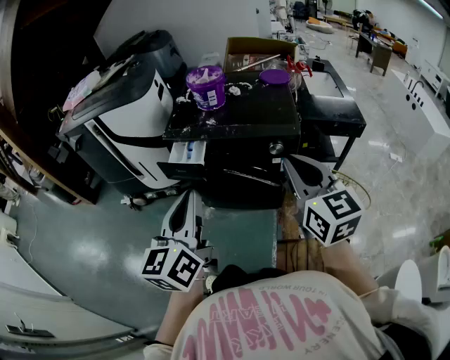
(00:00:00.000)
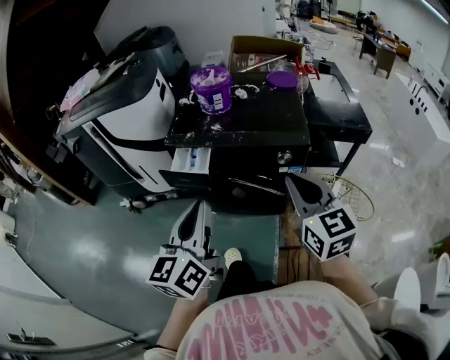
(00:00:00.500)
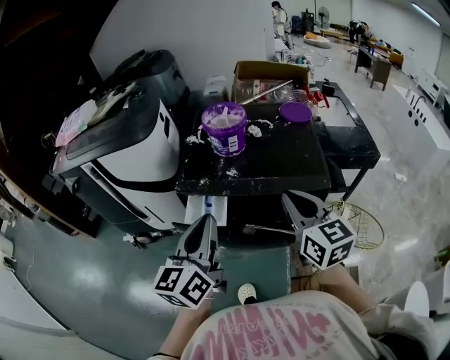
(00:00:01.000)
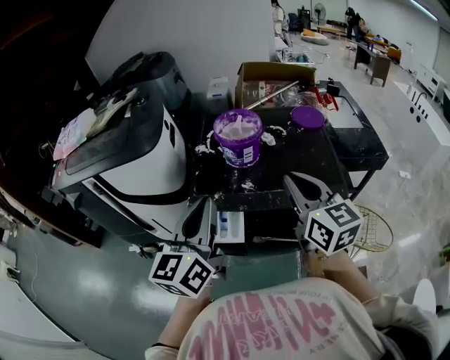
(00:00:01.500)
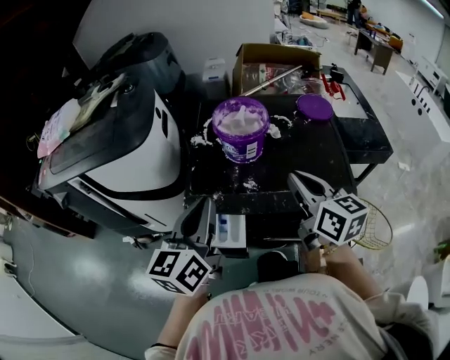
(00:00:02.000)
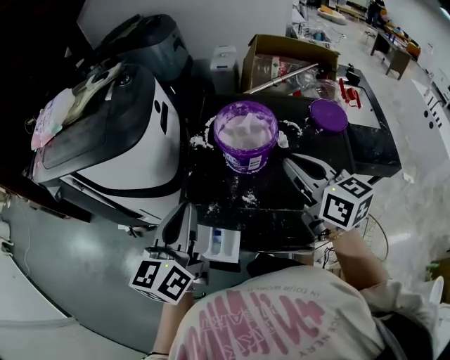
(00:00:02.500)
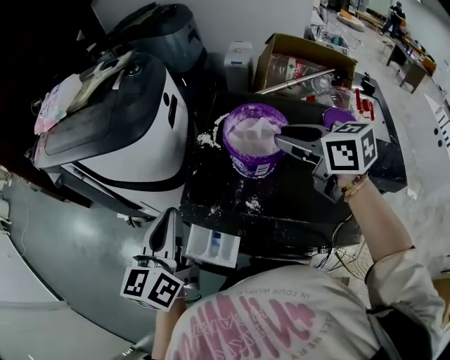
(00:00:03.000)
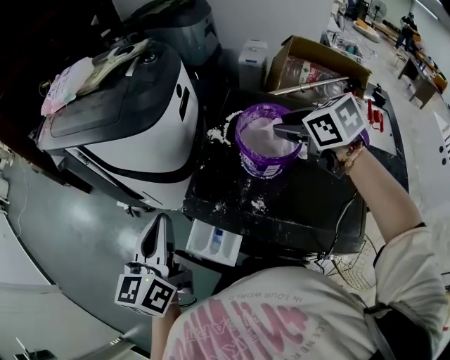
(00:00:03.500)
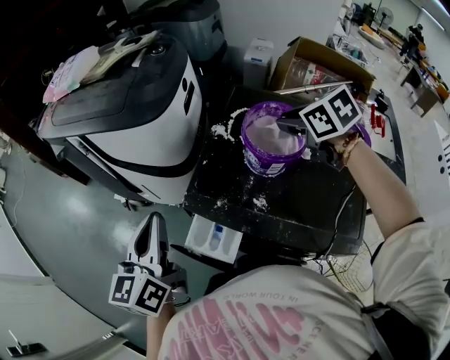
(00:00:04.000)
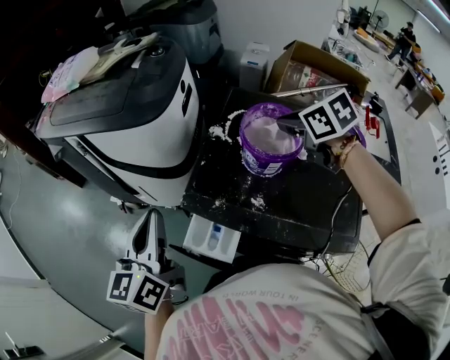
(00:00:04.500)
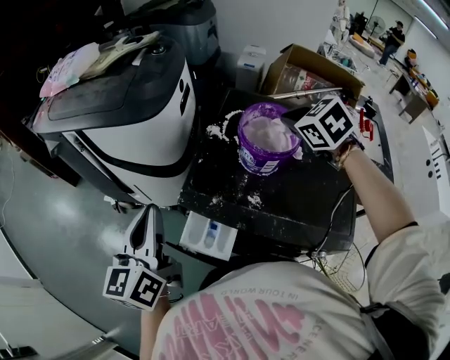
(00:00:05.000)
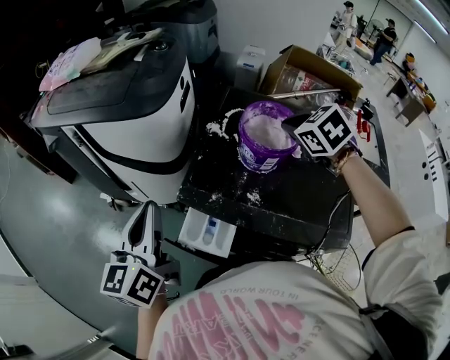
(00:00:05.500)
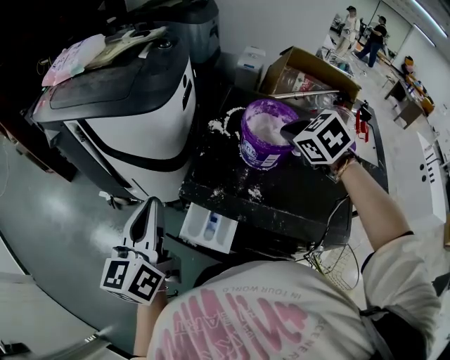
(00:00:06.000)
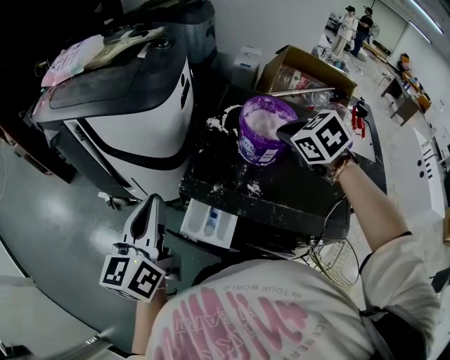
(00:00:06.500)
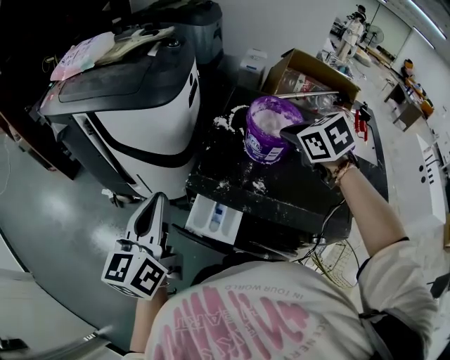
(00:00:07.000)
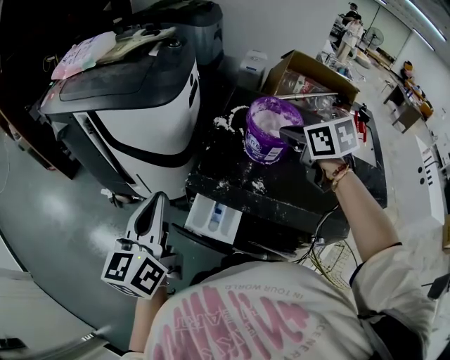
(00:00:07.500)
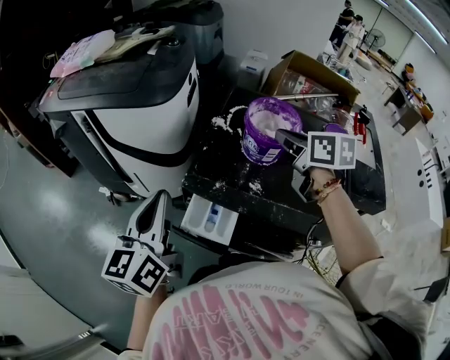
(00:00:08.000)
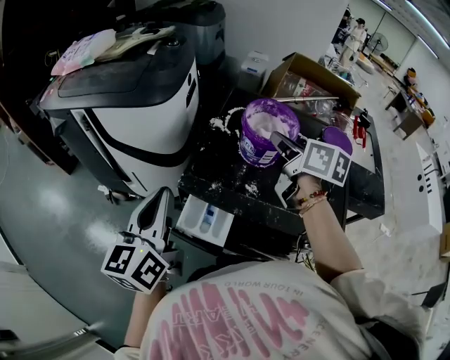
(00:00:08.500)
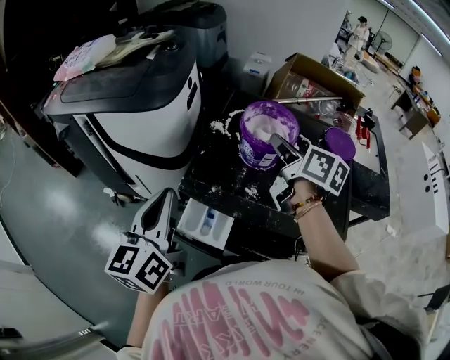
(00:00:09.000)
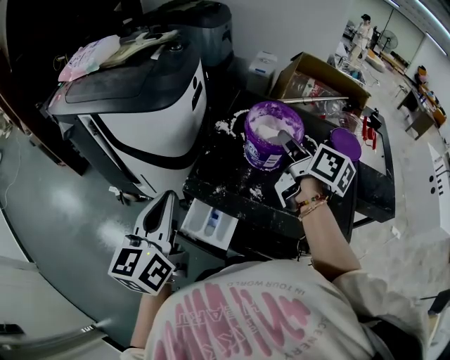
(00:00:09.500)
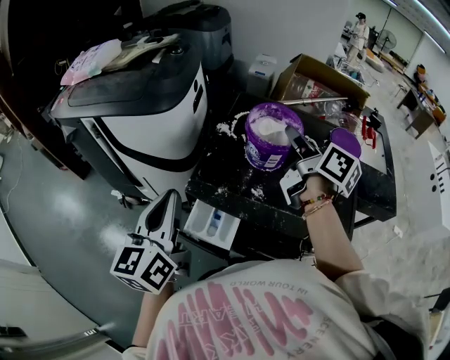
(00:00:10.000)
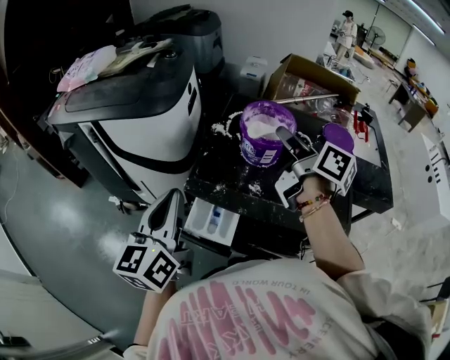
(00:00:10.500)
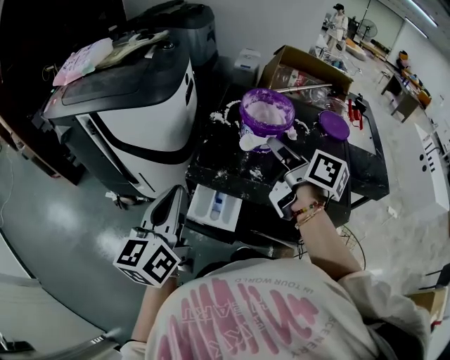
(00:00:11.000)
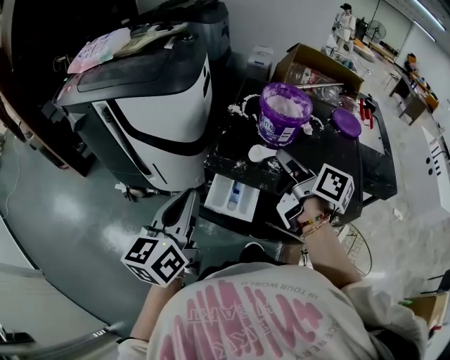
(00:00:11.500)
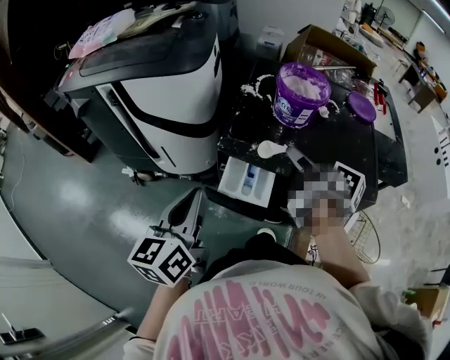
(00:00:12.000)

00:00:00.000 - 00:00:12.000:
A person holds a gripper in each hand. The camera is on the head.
00:00:00.000 - 00:00:02.000: Both grippers travel together forward, approximately 35 cm. The right gripper swivels some 20 degrees.
00:00:02.000 - 00:00:04.000: The left gripper shifts by some 10 cm, and turns by approximately 30 degrees. The right gripper ends up approximately 25 cm from where it was, points its fingers roughly 40 degrees further downward, and opens its fingers.
00:00:04.000 - 00:00:06.000: The right gripper moves backward, some 5 cm, and rotates roughly 20 degrees.
00:00:06.000 - 00:00:08.000: The right gripper rolls clockwise, seen from behind, by about 40 degrees.
00:00:08.000 - 00:00:10.000: The right gripper changes its angle by approximately 40 degrees.
00:00:10.000 - 00:00:12.000: The left gripper travels backward, downward and to the left by about 10 cm. Meanwhile the right gripper goes roughly 20 cm backward, to the left and downward.

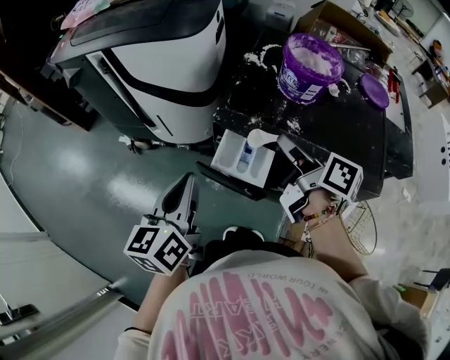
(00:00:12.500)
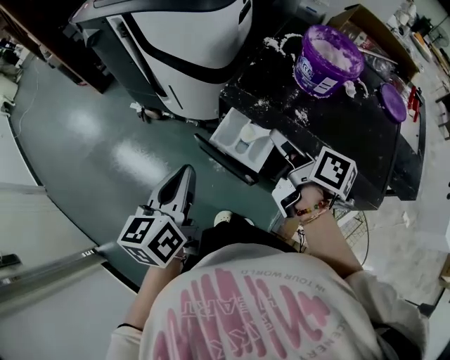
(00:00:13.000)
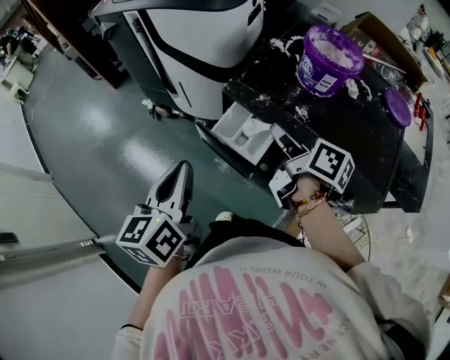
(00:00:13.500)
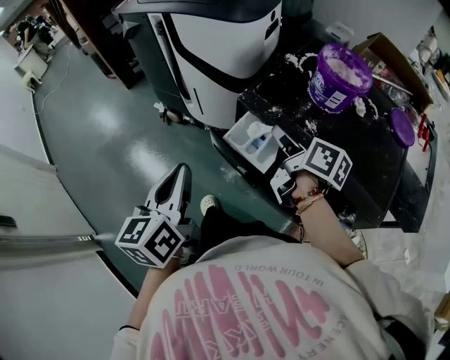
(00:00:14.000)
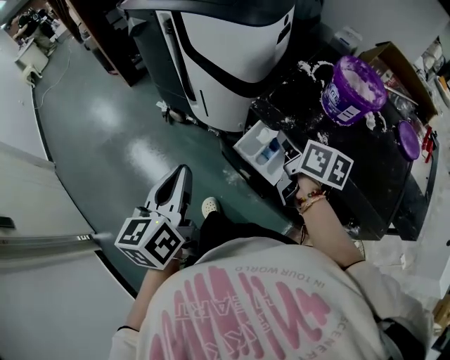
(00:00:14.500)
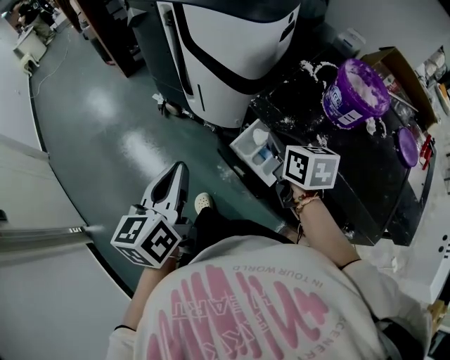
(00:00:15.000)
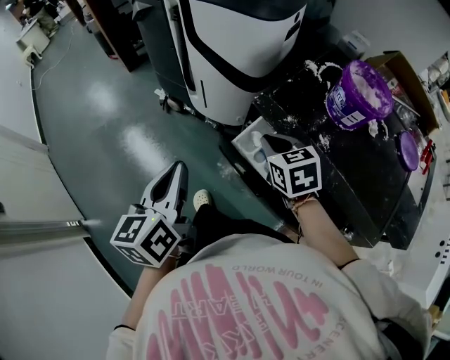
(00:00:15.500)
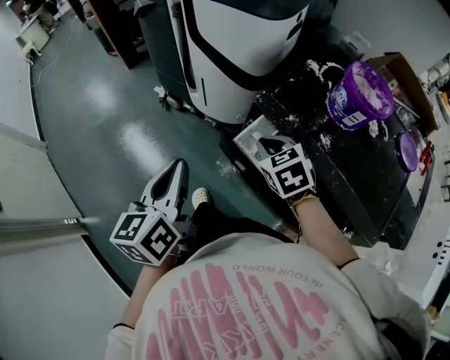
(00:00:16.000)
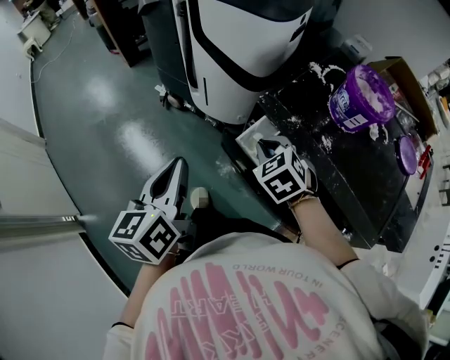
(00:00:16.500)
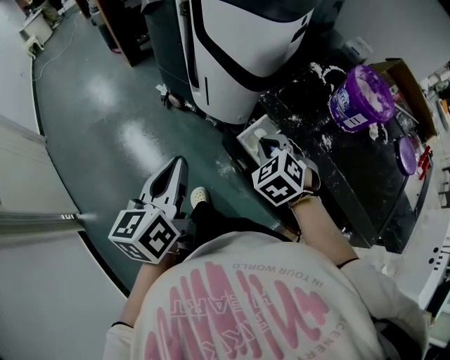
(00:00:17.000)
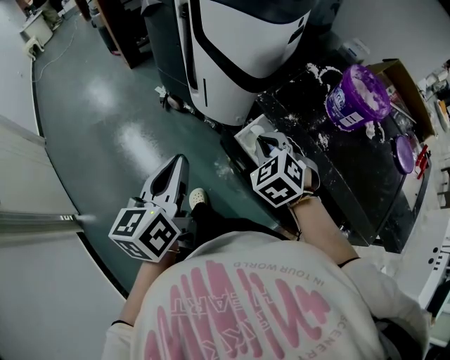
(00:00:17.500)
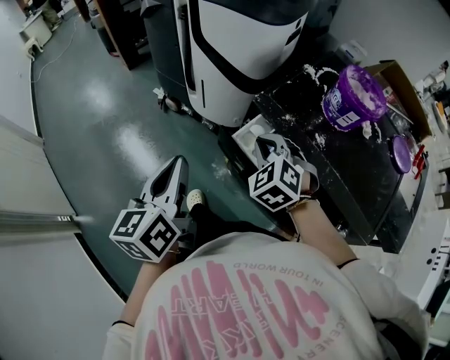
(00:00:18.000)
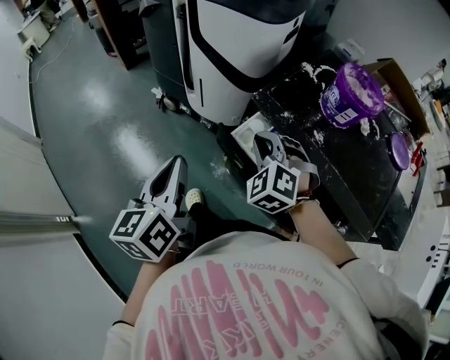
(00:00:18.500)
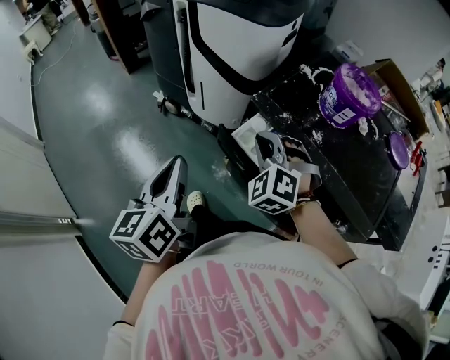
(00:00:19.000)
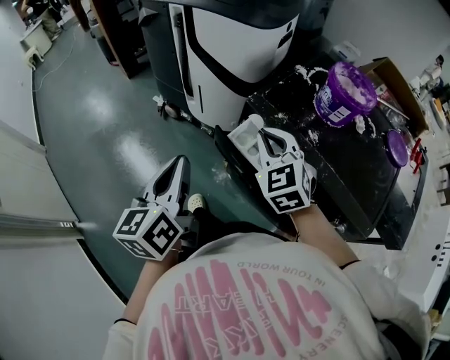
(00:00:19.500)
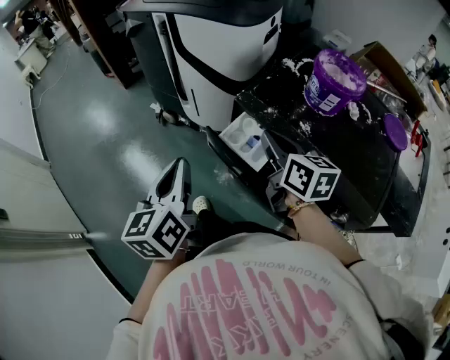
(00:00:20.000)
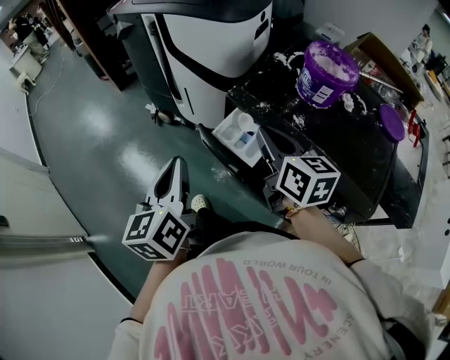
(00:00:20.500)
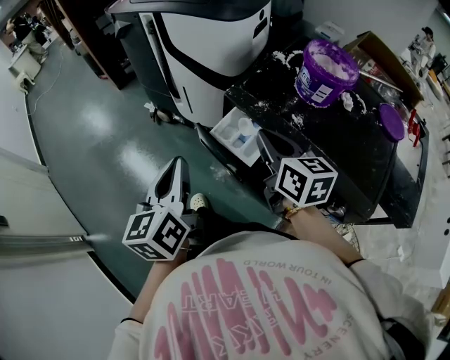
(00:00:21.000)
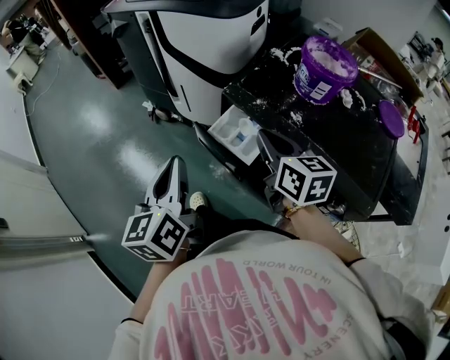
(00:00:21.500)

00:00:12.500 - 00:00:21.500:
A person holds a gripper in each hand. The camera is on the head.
00:00:12.500 - 00:00:14.500: The right gripper is displaced downward and to the left by some 10 cm, and turns by roughly 30 degrees. Meanwhile the left gripper shifts roughly 10 cm backward and to the left, and rotates about 20 degrees.
00:00:14.500 - 00:00:17.000: The right gripper shifts some 10 cm to the left and downward, and rolls counterclockwise, seen from behind, by about 80 degrees.
00:00:17.000 - 00:00:19.500: The right gripper shifts some 10 cm upward, and rotates about 20 degrees.
00:00:19.500 - 00:00:21.500: The right gripper moves to the right, approximately 5 cm, and rotates around the line of its fingers by some 50 degrees, clockwise from behind.

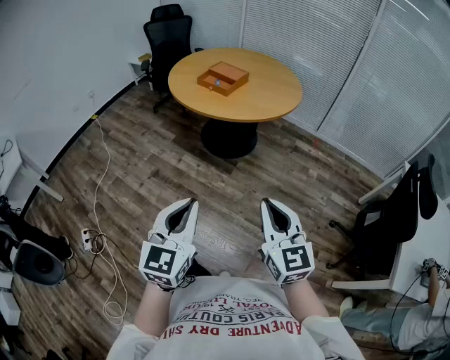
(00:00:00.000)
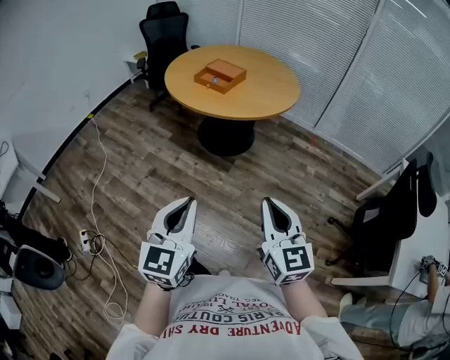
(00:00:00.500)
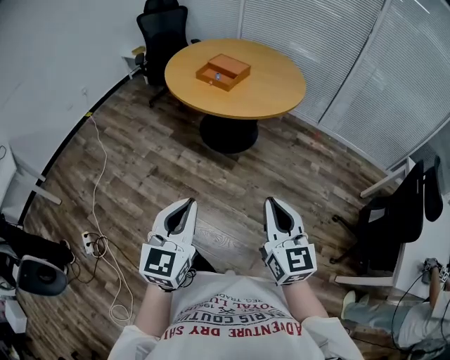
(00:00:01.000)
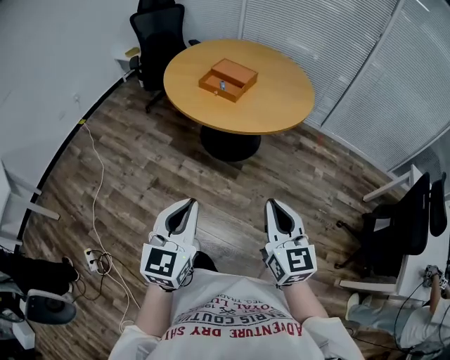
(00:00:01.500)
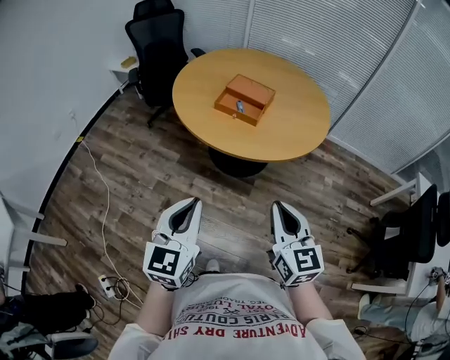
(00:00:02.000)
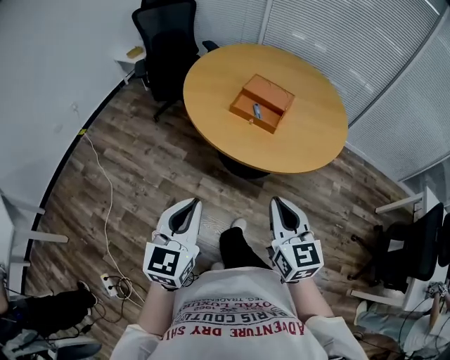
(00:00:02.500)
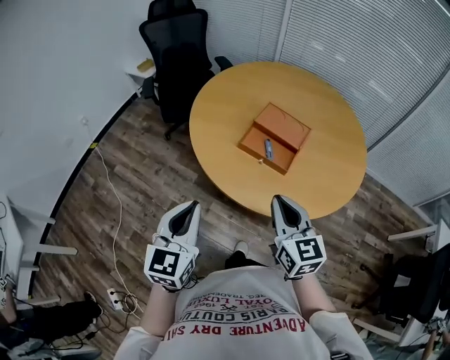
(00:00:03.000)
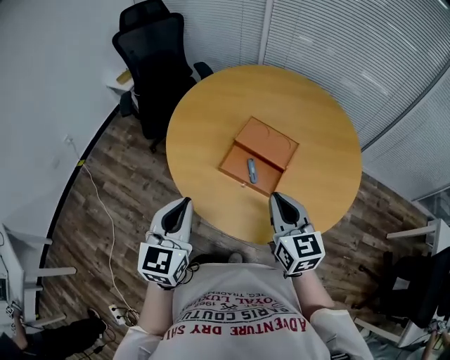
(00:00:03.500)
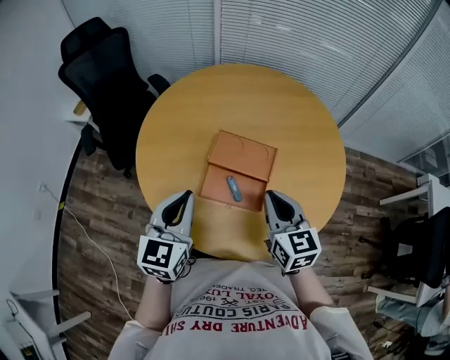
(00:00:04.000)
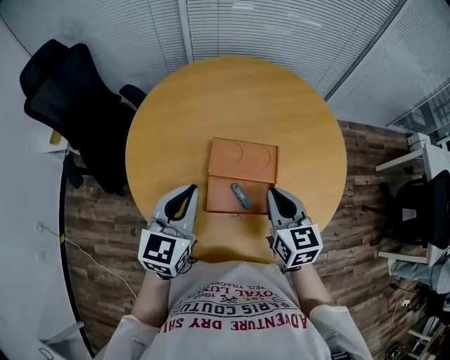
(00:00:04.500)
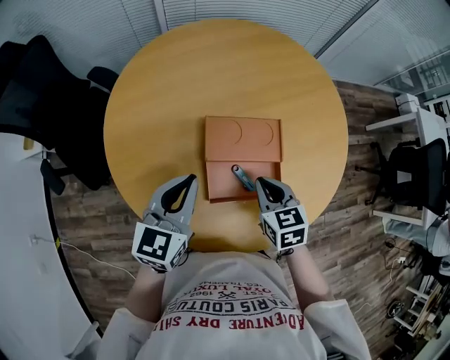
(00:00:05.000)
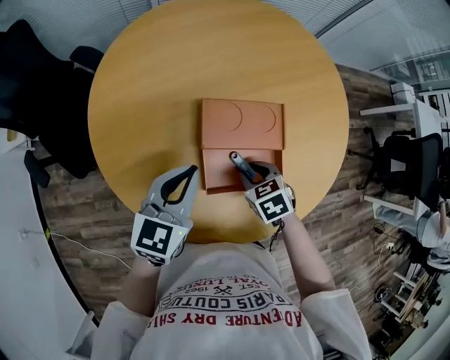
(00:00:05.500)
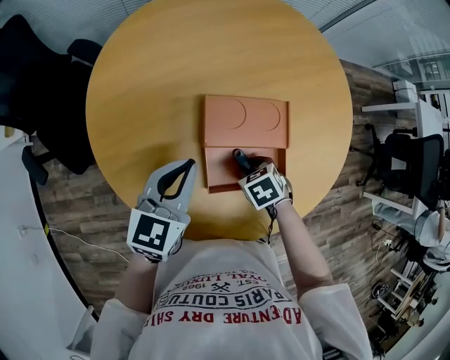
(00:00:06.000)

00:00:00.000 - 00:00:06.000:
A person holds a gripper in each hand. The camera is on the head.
00:00:00.000 - 00:00:02.000: Both grippers travel together forward and to the left, some 40 cm.
00:00:02.000 - 00:00:04.000: The pair of grippers is taken forward, roughly 50 cm.
00:00:04.000 - 00:00:06.000: The left gripper moves approximately 20 cm, and rotates some 30 degrees; the right gripper is displaced downward by approximately 25 cm, tilts its fingers about 60 degrees downward, and opens.
